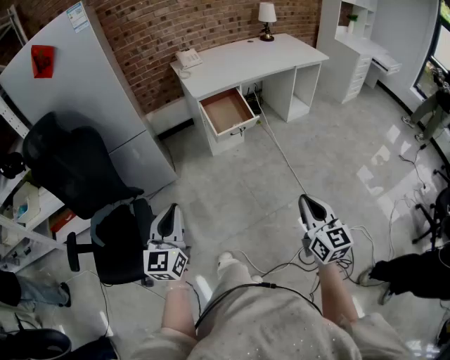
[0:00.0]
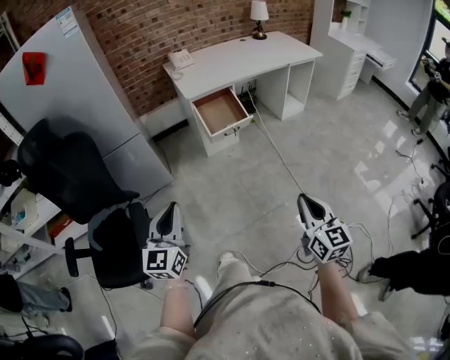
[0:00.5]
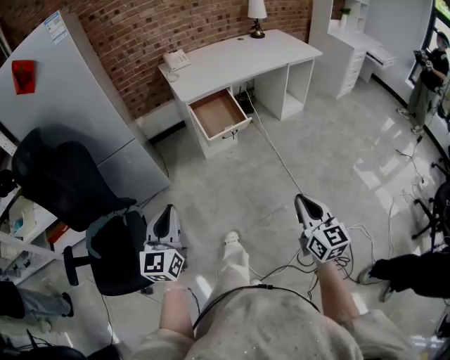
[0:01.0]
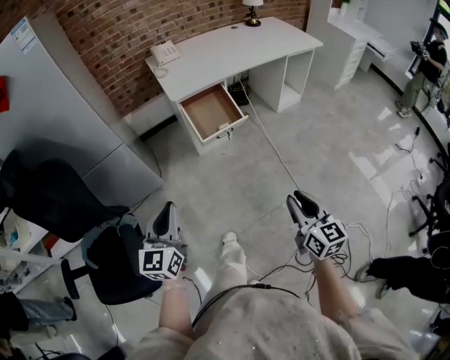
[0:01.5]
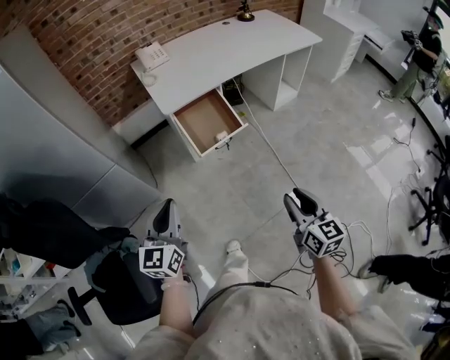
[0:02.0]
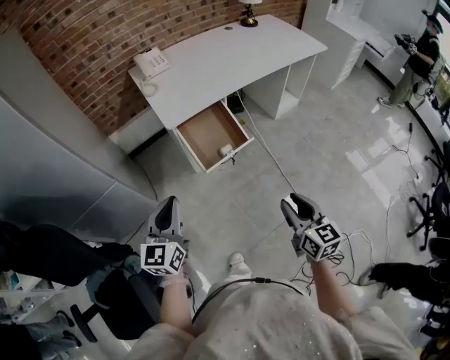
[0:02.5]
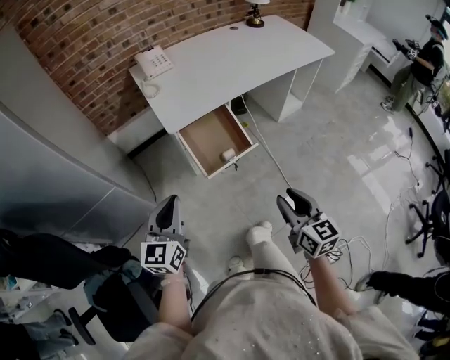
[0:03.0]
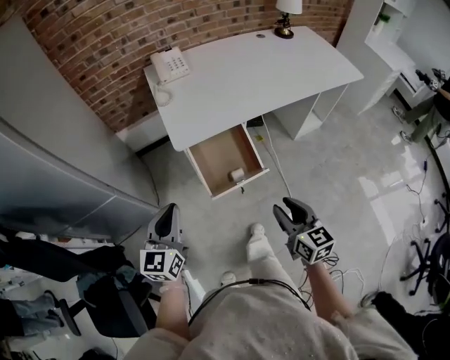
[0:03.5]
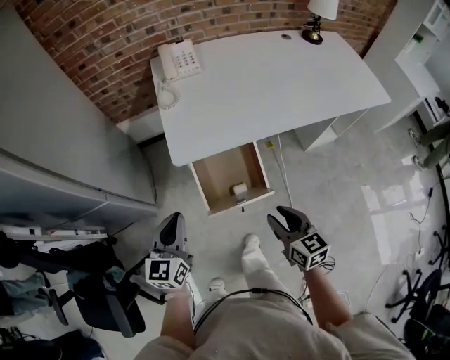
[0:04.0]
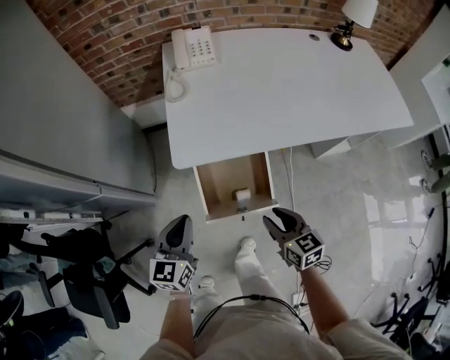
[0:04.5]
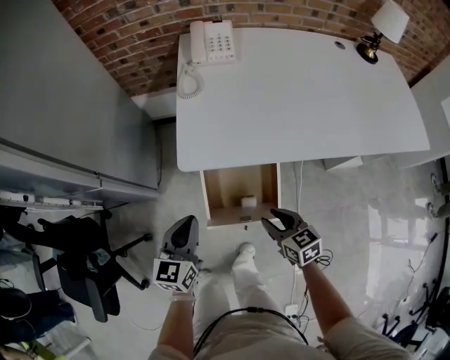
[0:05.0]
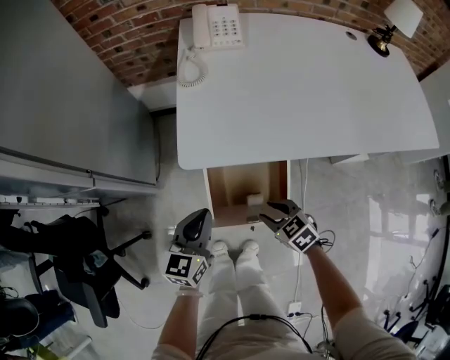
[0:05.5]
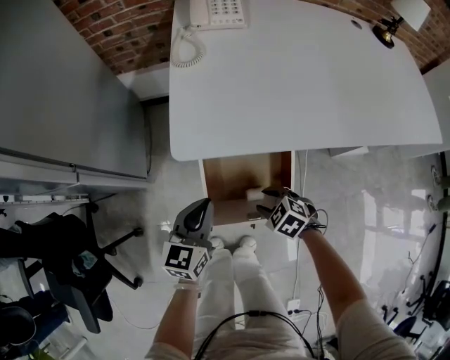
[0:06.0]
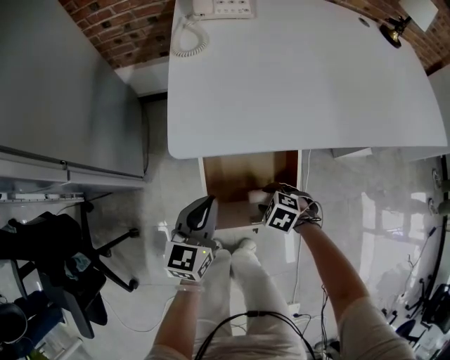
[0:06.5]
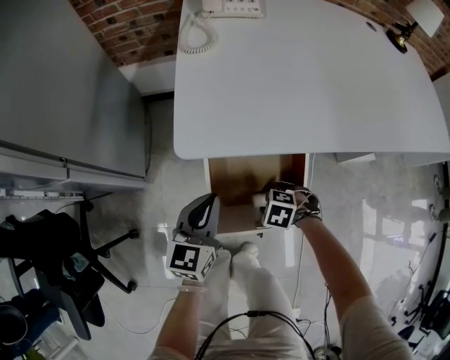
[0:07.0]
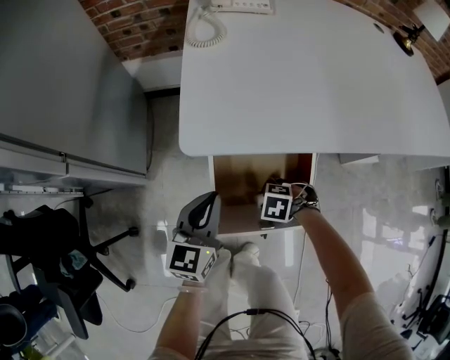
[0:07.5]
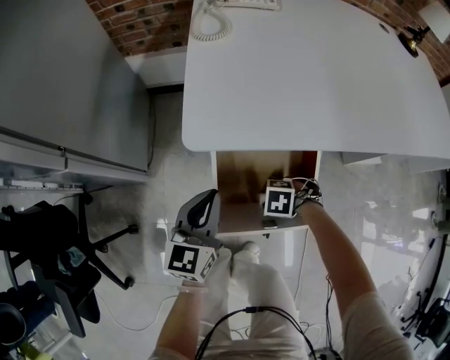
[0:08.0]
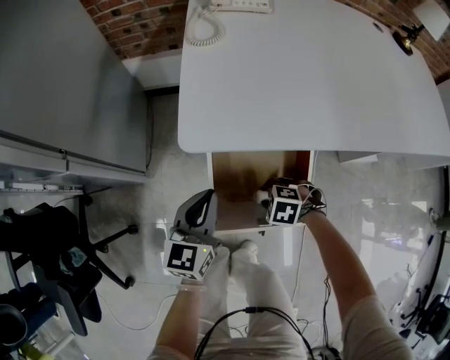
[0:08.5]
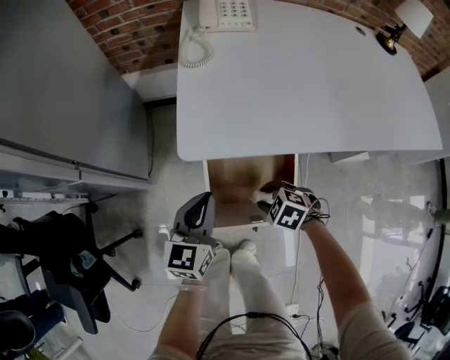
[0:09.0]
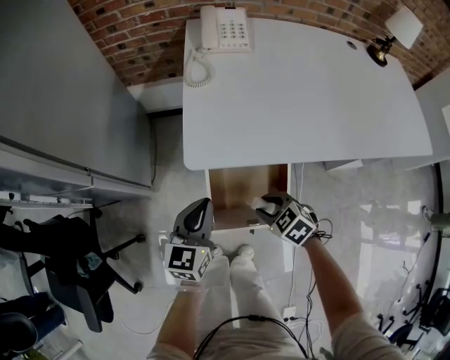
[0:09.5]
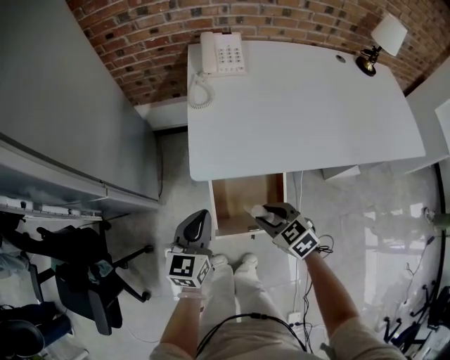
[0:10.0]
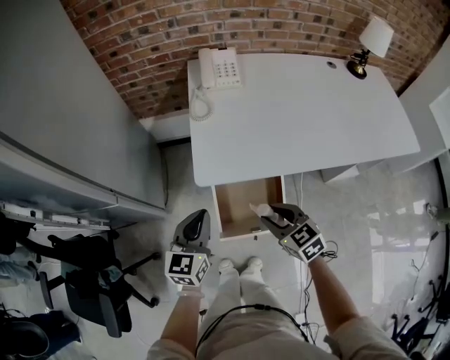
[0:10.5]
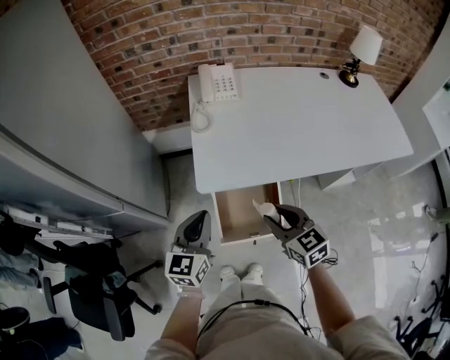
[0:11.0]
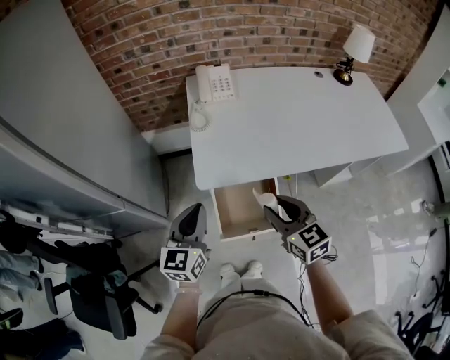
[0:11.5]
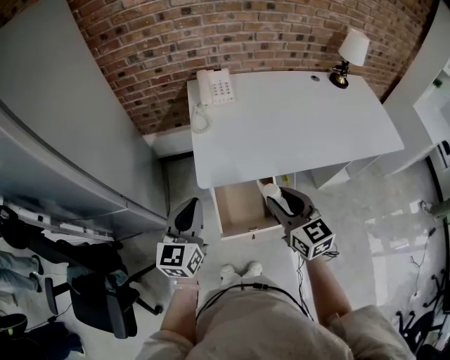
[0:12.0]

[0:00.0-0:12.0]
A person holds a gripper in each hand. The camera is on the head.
0:00.0 to 0:02.0: Both grippers travel together forward, some 25 cm. The right gripper opens up.
0:02.0 to 0:04.0: Both grippers move forward, approximately 30 cm. The right gripper turns by roughly 30 degrees.
0:04.0 to 0:06.0: The right gripper travels downward and forward by some 30 cm, and tips its fingers downward by roughly 40 degrees. The left gripper shifts approximately 20 cm downward and to the right.
0:06.0 to 0:08.0: The right gripper travels downward by about 10 cm, and changes its angle by about 30 degrees.
0:08.0 to 0:10.0: The right gripper is displaced upward by some 25 cm, and turns by about 50 degrees. The left gripper moves upward, about 15 cm.
0:10.0 to 0:12.0: The grippers both shift upward by some 20 cm. The right gripper points its fingers roughly 30 degrees further upward.

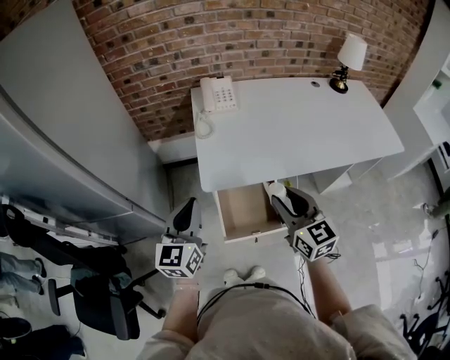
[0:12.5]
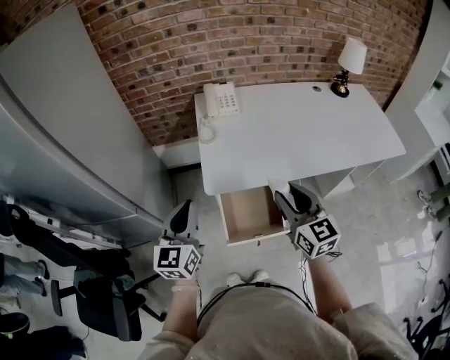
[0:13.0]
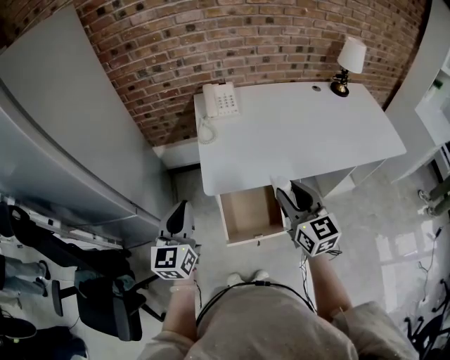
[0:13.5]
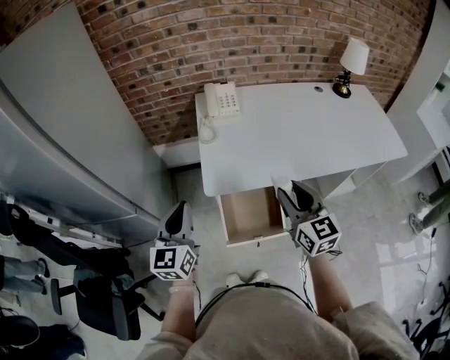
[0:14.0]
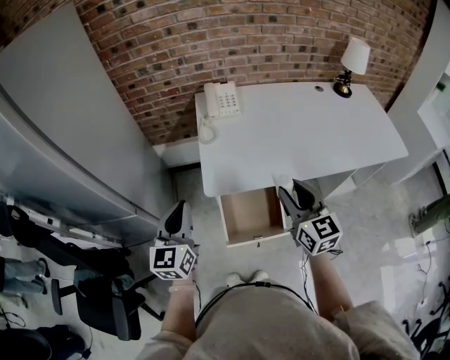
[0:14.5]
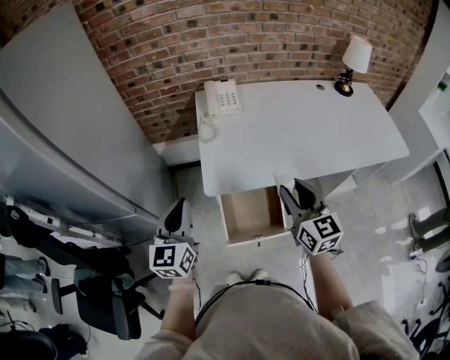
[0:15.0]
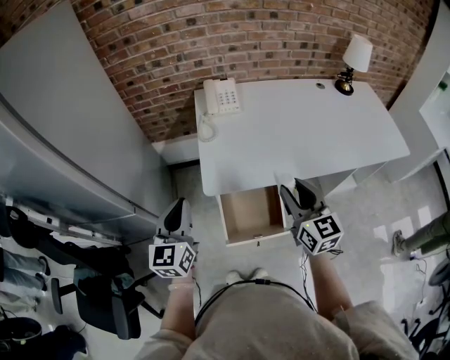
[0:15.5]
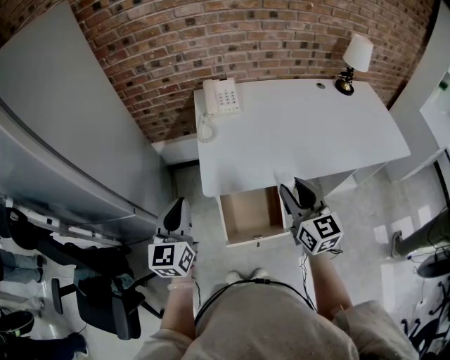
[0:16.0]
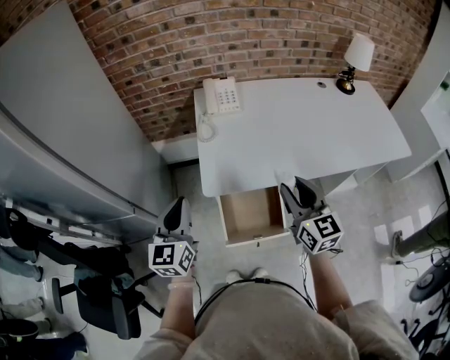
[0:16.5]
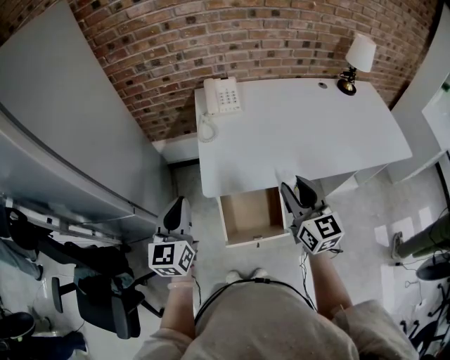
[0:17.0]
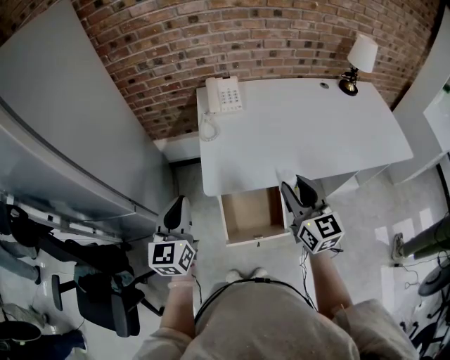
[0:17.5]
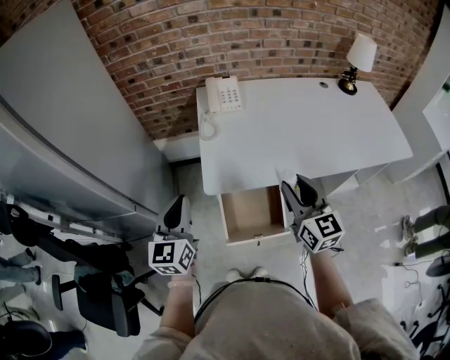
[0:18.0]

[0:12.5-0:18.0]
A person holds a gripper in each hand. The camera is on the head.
0:12.5 to 0:16.0: The grippers move only a little.
0:16.0 to 0:18.0: Neither gripper changes place.

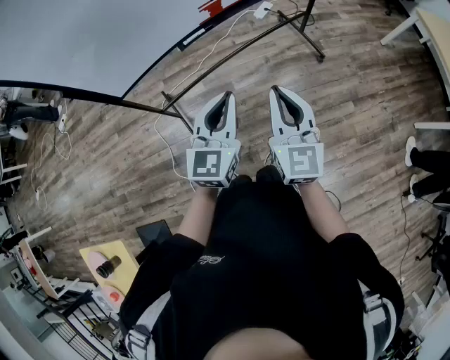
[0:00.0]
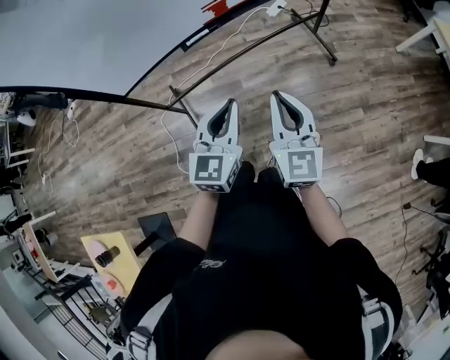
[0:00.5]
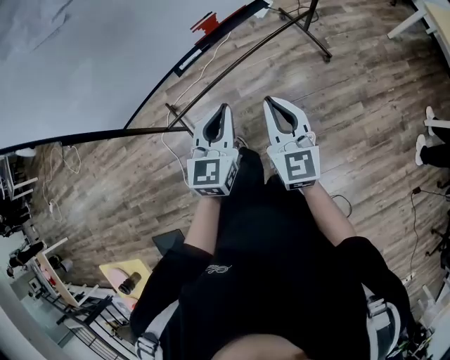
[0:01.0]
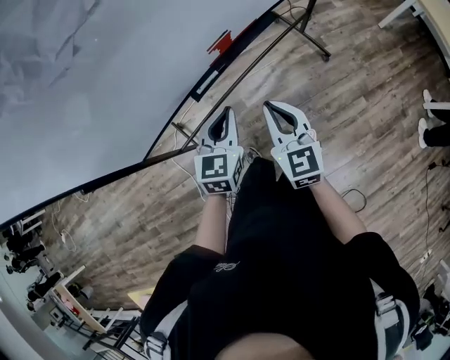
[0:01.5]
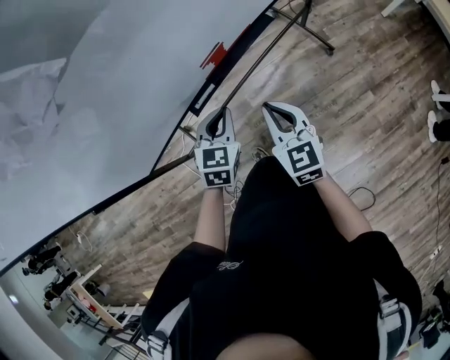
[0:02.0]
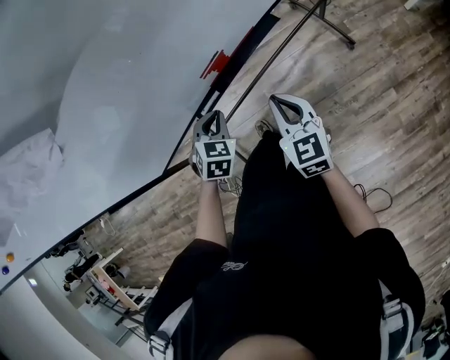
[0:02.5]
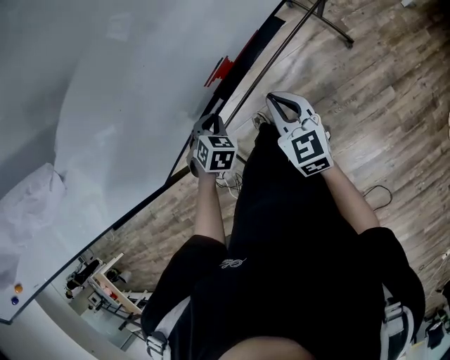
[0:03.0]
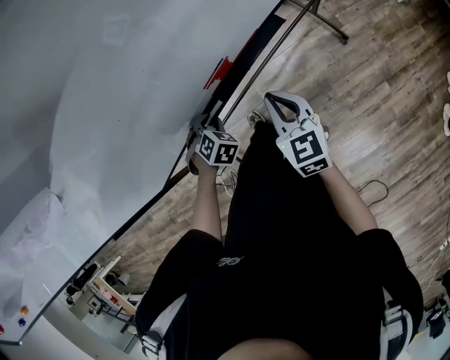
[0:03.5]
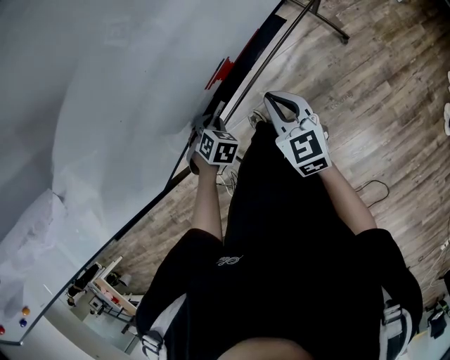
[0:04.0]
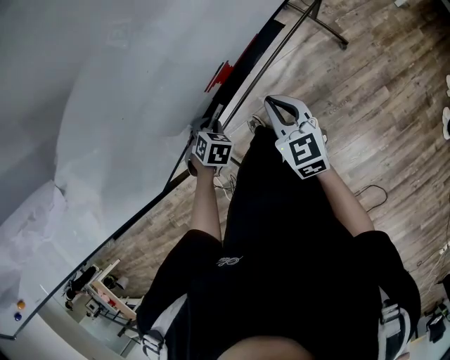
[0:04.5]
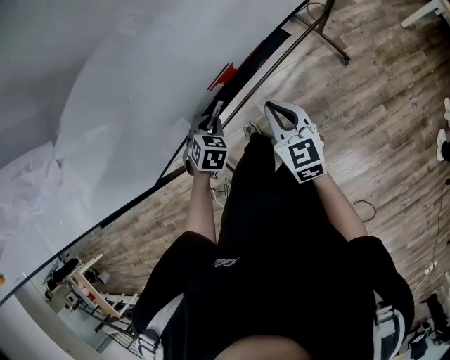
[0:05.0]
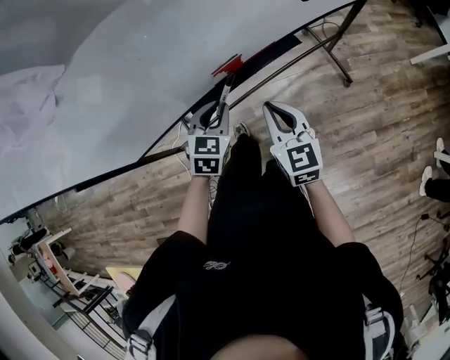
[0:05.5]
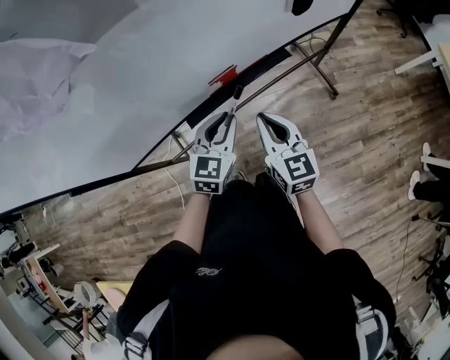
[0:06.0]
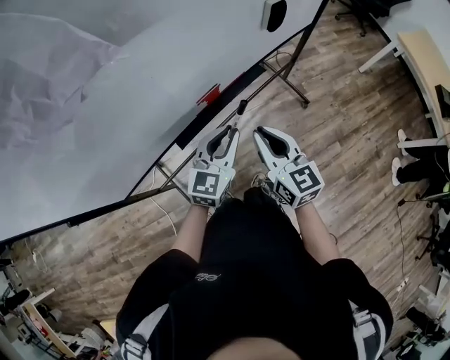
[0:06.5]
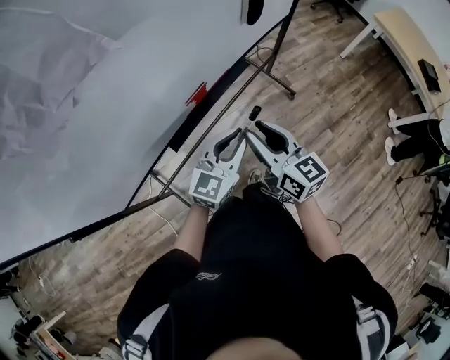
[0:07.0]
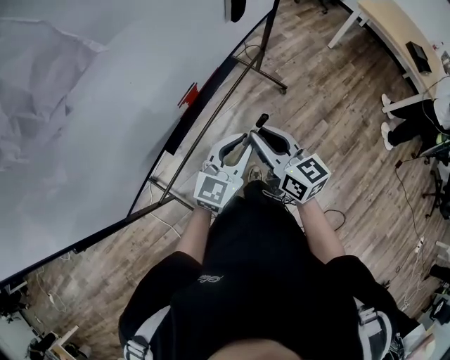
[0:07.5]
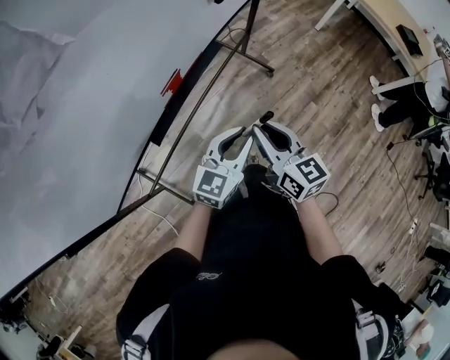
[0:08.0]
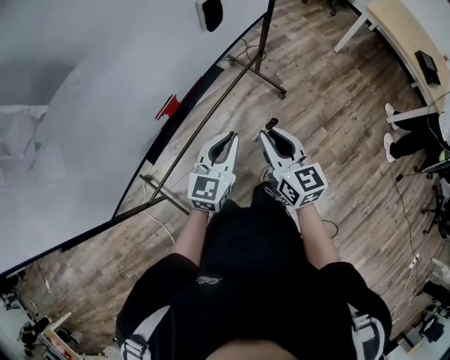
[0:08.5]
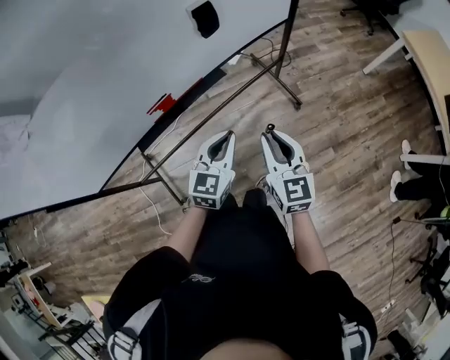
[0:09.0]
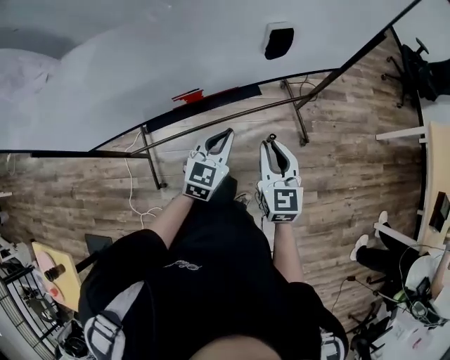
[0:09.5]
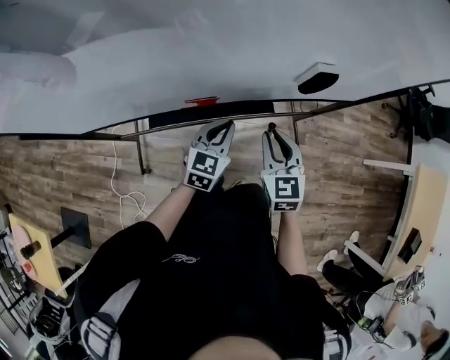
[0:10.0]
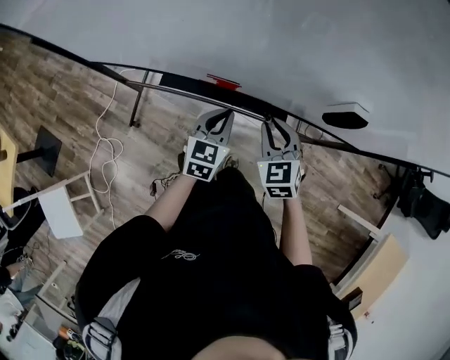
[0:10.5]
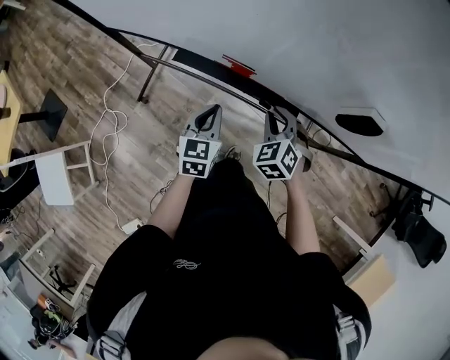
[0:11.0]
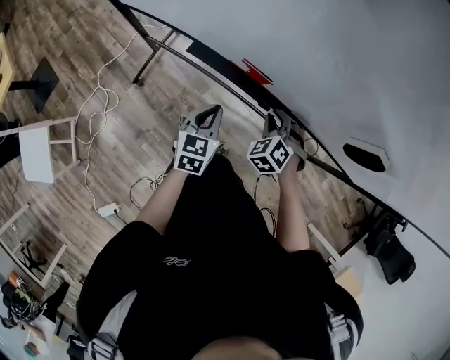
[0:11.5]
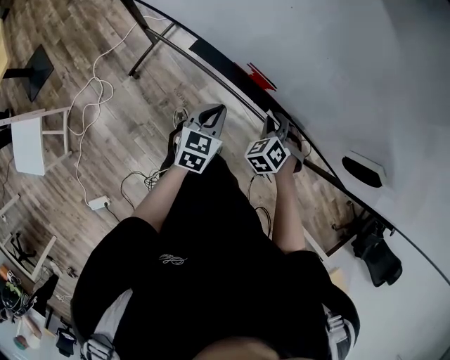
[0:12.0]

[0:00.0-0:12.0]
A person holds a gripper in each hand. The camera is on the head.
0:00.0 to 0:02.0: The grippers both shift forward and downward by about 30 cm. The left gripper swivels roughly 30 degrees.
0:02.0 to 0:04.0: The right gripper shifts some 10 cm forward and downward, while the left gripper travels downward, forward and to the left by about 20 cm, and tilts its fingers roughly 30 degrees downward.
0:04.0 to 0:06.0: The left gripper is displaced upward and to the right by some 20 cm, and tilts its fingers roughly 40 degrees upward. The right gripper is displaced upward and backward by approximately 10 cm.
0:06.0 to 0:08.0: The left gripper ends up roughly 15 cm from where it was, and turns by some 40 degrees; the right gripper ends up some 10 cm from where it was, and changes its angle by approximately 20 degrees.
0:08.0 to 0:10.0: The right gripper ends up some 25 cm from where it was, and rotates about 50 degrees. The left gripper ends up some 25 cm from where it was, and changes its angle by about 50 degrees.
0:10.0 to 0:12.0: The right gripper goes approximately 20 cm downward, and rolls counterclockwise, seen from behind, by some 60 degrees. The left gripper moves downward, about 10 cm, and swivels about 50 degrees.
